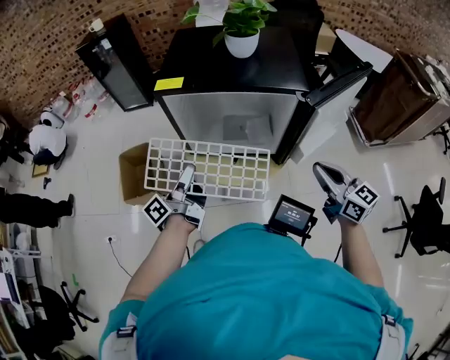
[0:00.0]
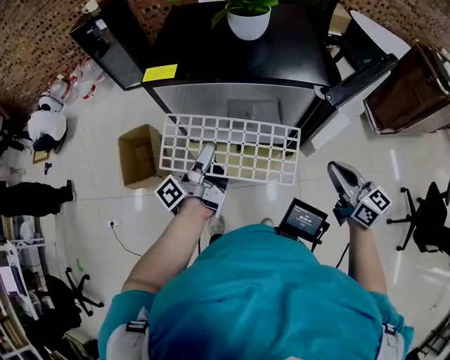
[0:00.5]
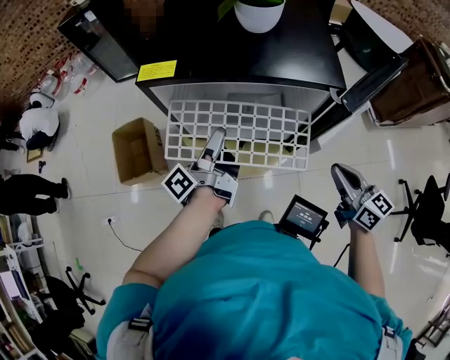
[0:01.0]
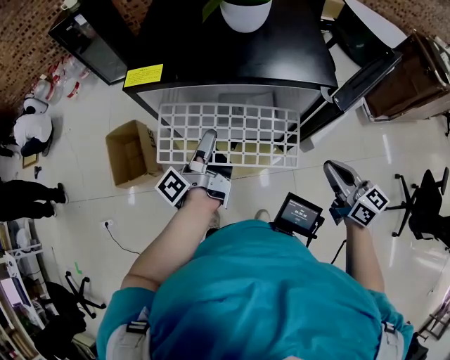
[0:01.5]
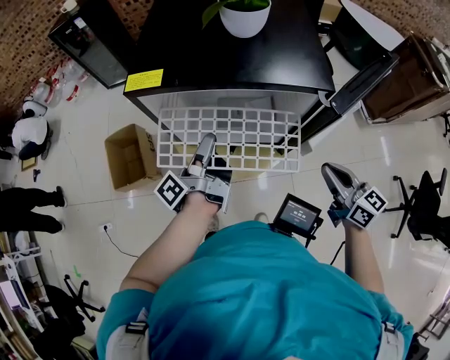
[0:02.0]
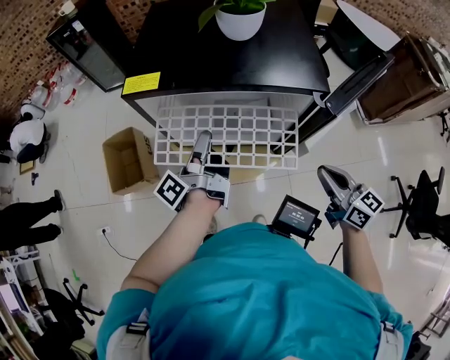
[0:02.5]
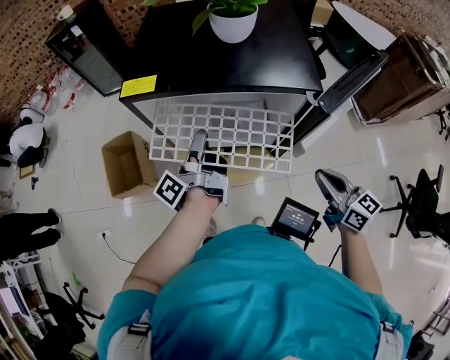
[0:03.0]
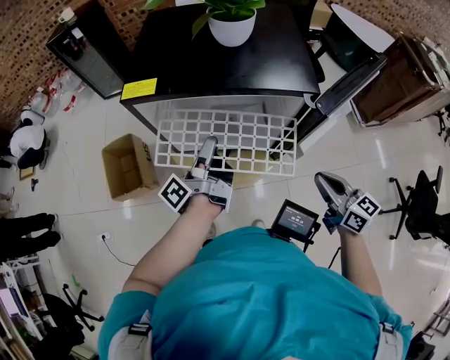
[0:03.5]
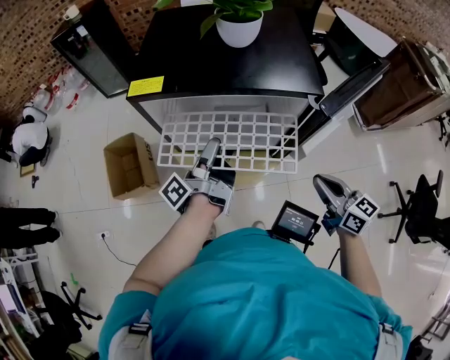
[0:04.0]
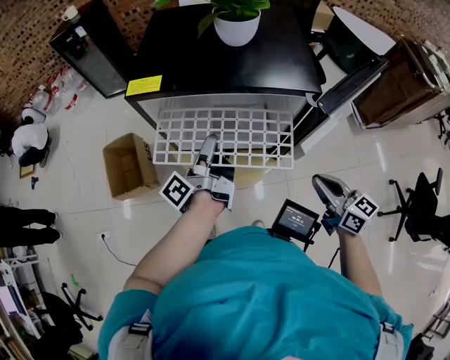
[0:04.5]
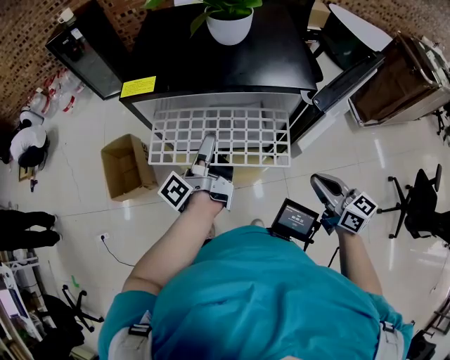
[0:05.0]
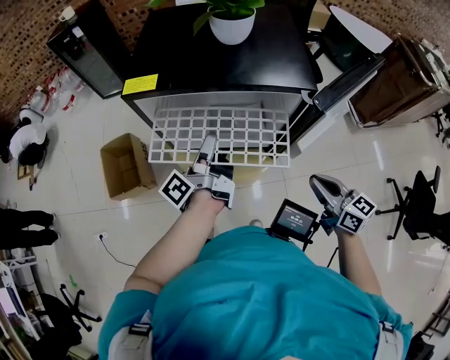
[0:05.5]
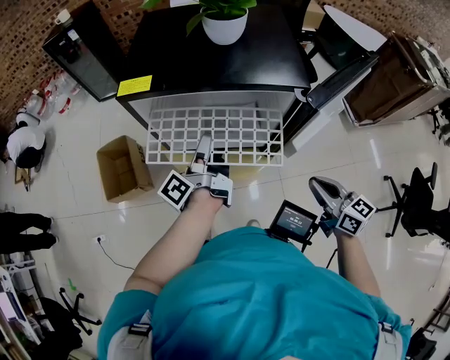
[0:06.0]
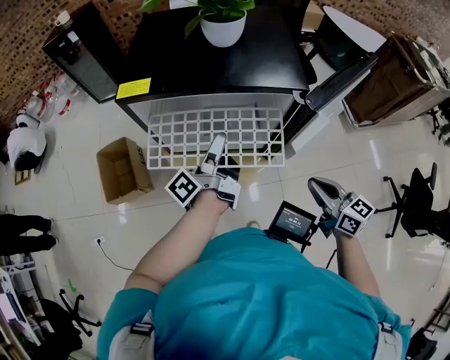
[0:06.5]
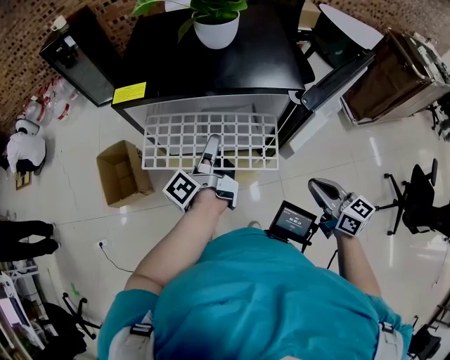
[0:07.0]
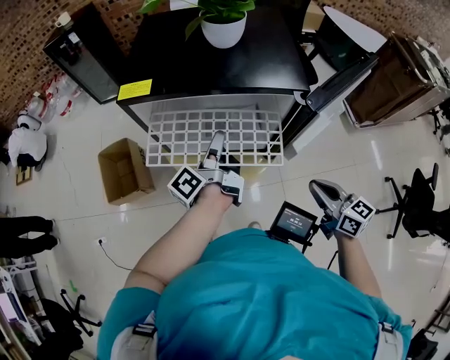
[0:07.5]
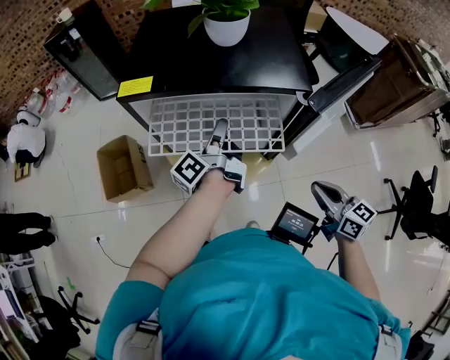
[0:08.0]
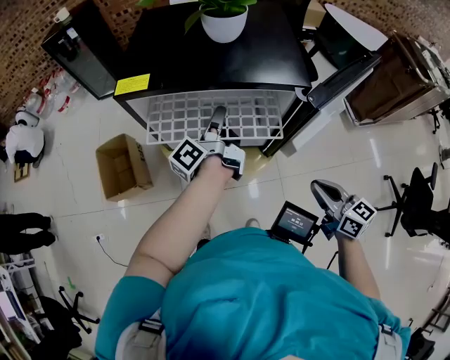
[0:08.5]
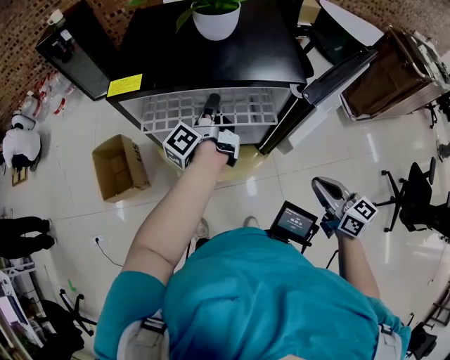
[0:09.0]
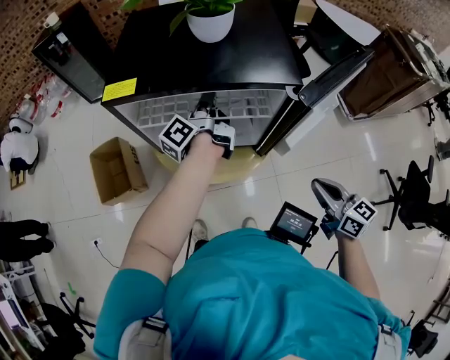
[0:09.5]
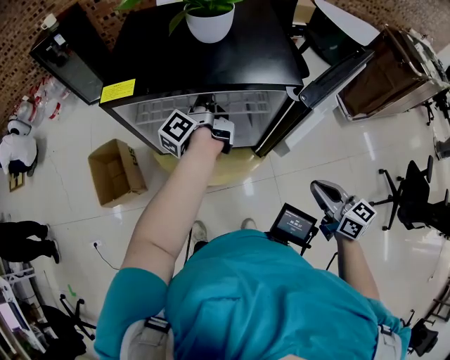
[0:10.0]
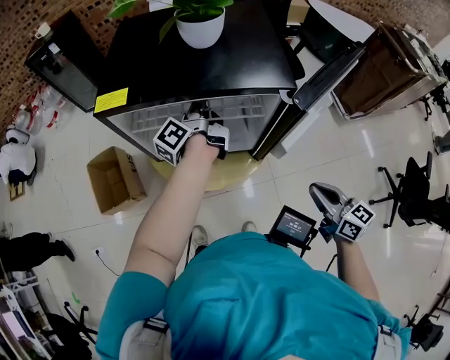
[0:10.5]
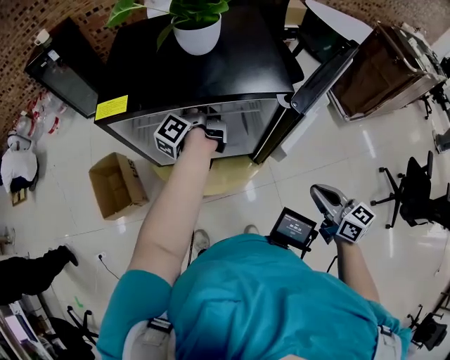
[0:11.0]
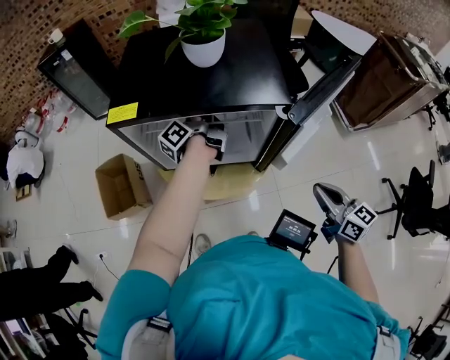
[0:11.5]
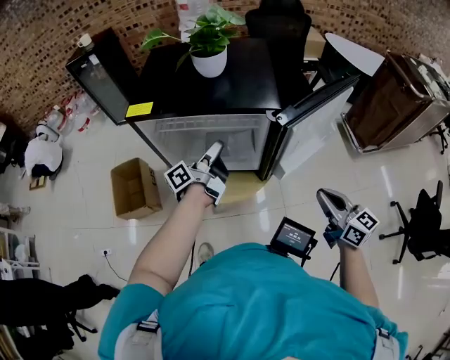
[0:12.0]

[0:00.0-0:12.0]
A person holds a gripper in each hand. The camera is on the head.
0:00.0 to 0:02.0: The left gripper is displaced forward and to the right by approximately 20 cm, and turns by approximately 20 degrees, while the right gripper shifts approximately 15 cm forward.
0:02.0 to 0:06.0: There are only small adjustments of the grippers.
0:06.0 to 0:08.0: The left gripper goes some 5 cm to the right.
0:08.0 to 0:10.0: The left gripper heads forward, covering about 10 cm.
0:10.0 to 0:12.0: The right gripper moves backward and to the right, approximately 15 cm; the left gripper goes roughly 20 cm backward.

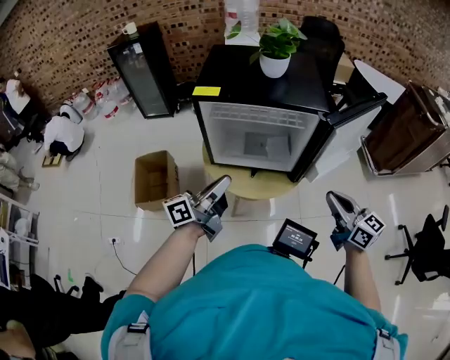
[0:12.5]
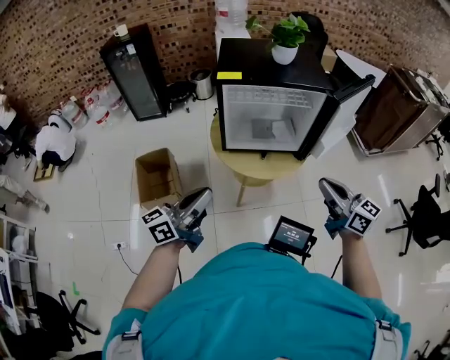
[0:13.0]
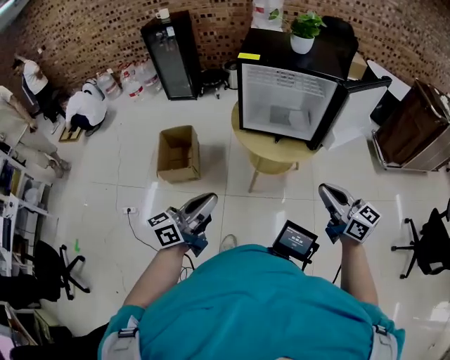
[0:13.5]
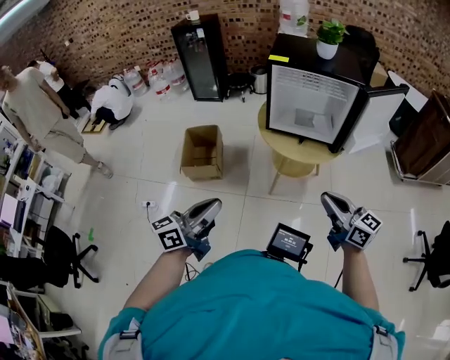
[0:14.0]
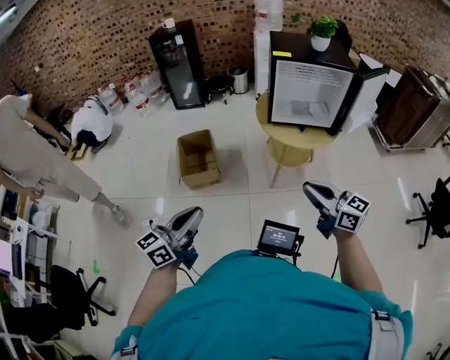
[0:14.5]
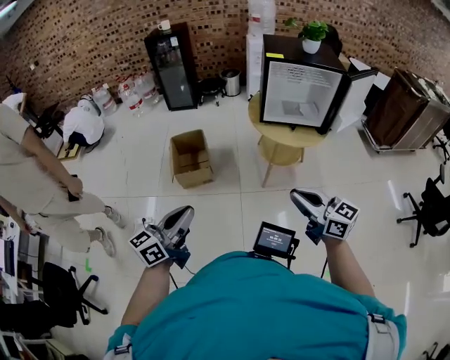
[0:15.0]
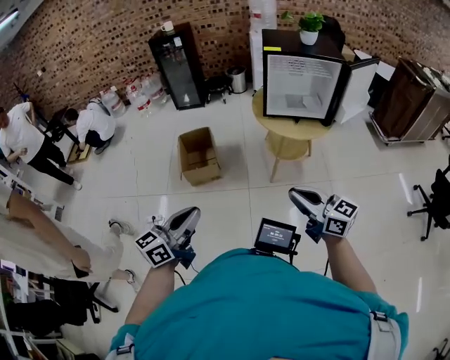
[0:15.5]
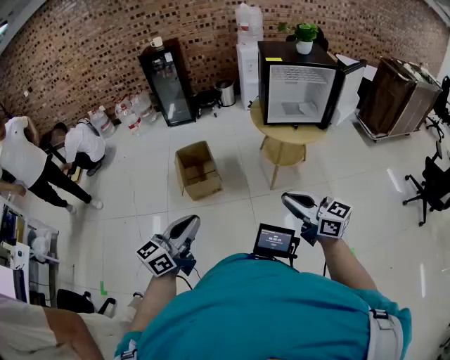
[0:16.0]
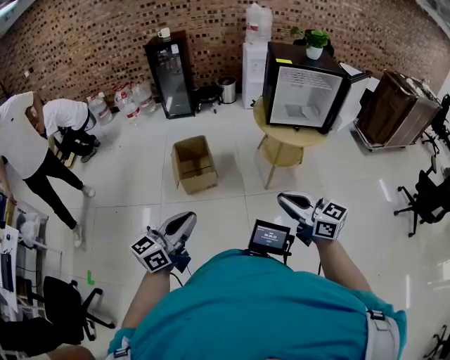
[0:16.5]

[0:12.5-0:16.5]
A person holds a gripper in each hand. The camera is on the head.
0:12.5 to 0:14.5: Both grippers are carried backward and to the left, some 60 cm. The left gripper rotates roughly 20 degrees.
0:14.5 to 0:16.5: The two grippers go roughly 20 cm to the left and backward.

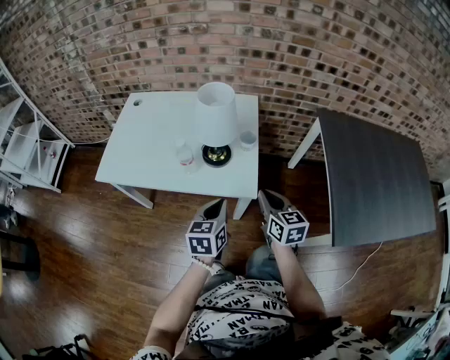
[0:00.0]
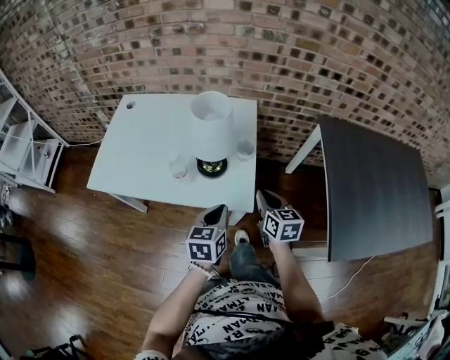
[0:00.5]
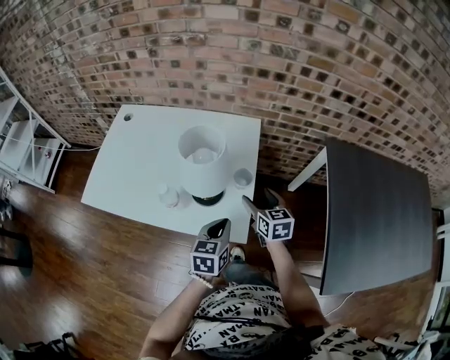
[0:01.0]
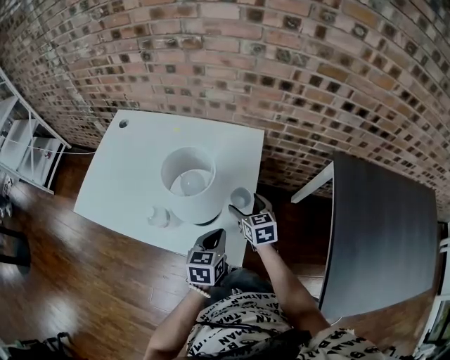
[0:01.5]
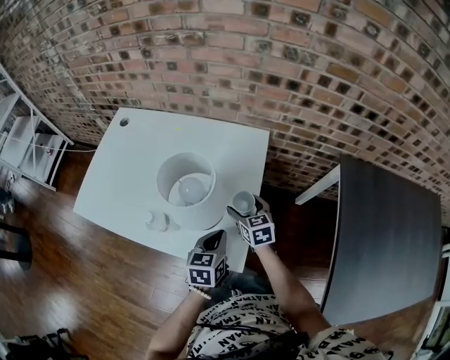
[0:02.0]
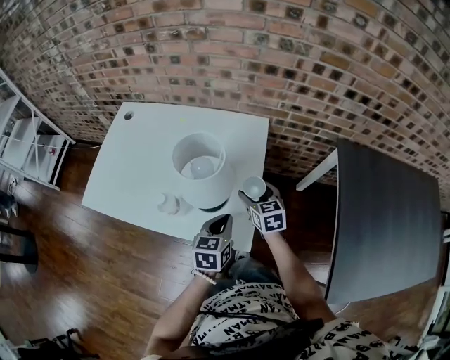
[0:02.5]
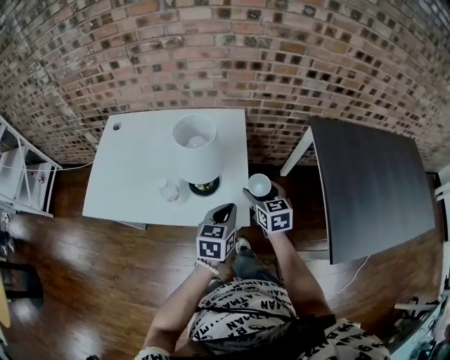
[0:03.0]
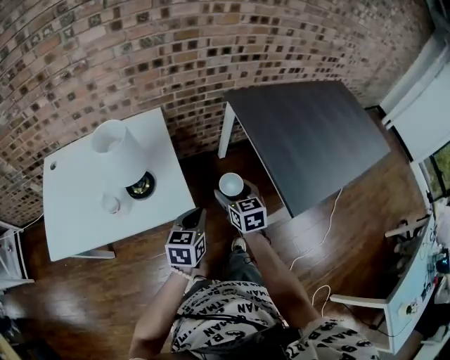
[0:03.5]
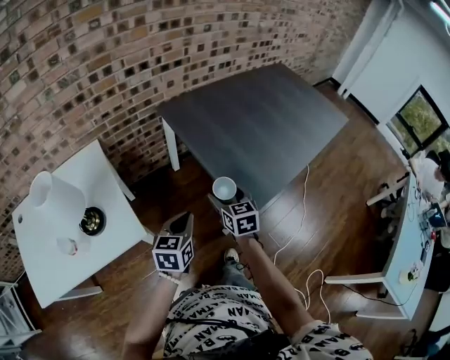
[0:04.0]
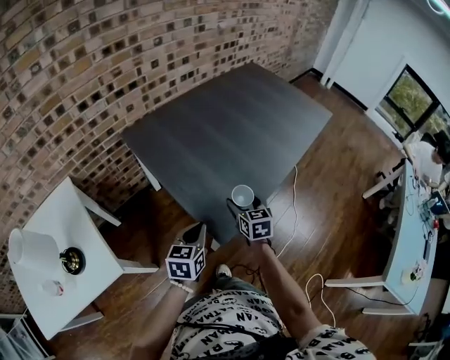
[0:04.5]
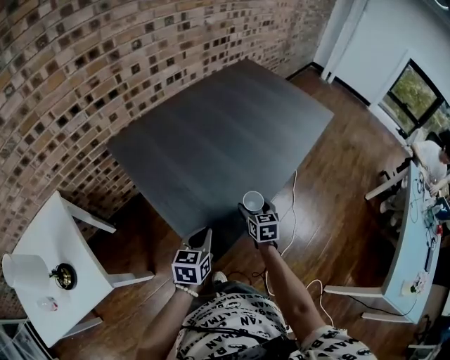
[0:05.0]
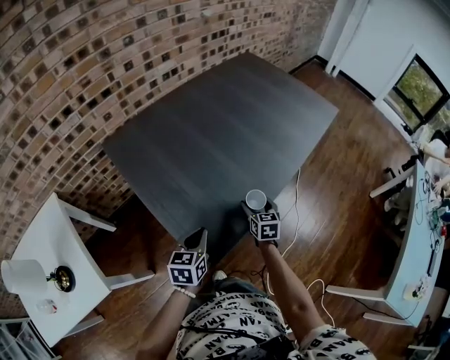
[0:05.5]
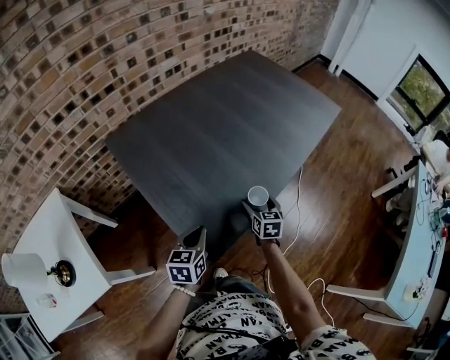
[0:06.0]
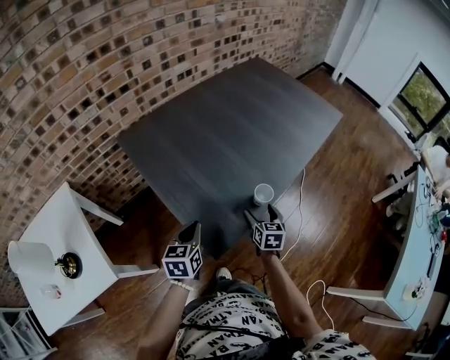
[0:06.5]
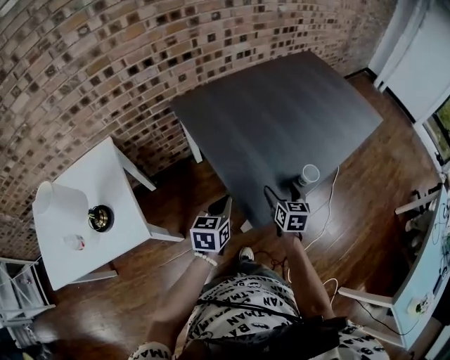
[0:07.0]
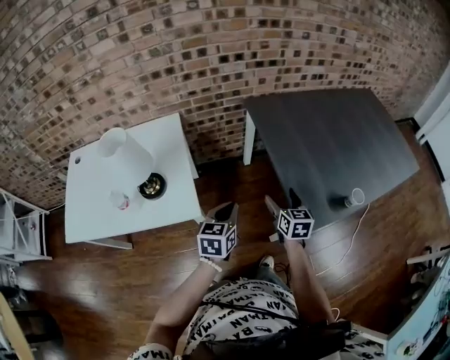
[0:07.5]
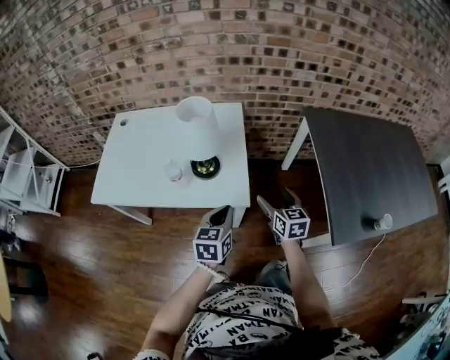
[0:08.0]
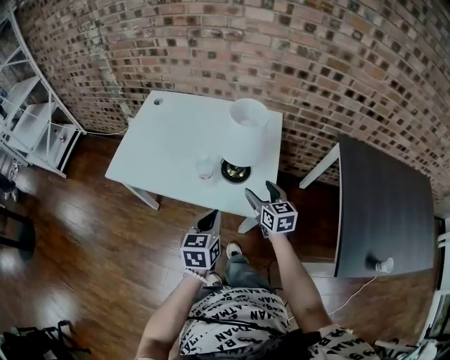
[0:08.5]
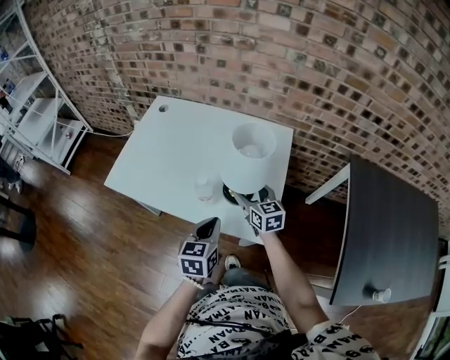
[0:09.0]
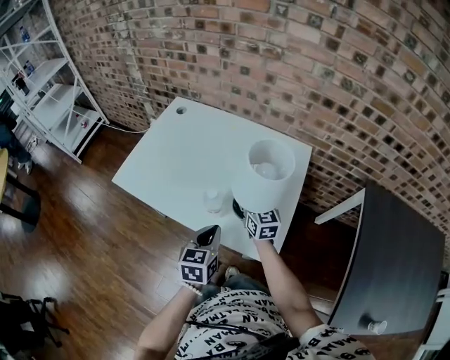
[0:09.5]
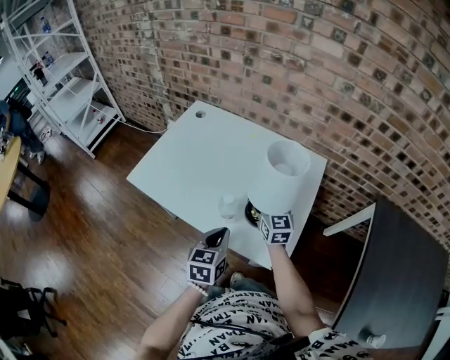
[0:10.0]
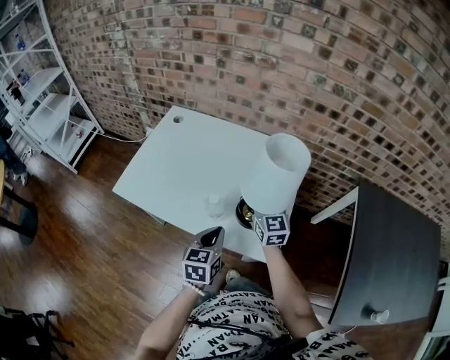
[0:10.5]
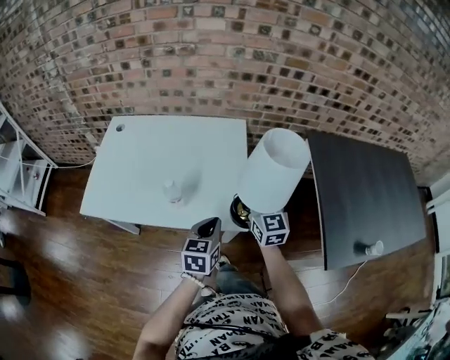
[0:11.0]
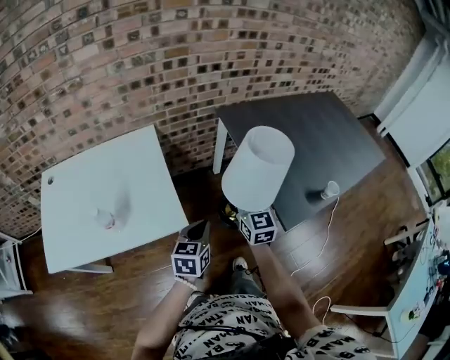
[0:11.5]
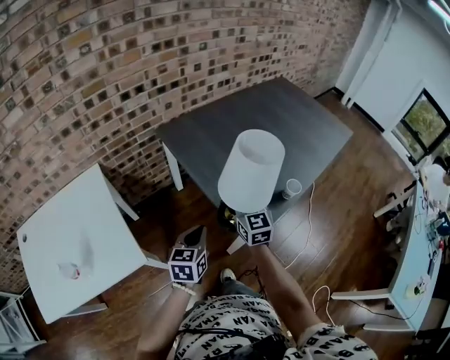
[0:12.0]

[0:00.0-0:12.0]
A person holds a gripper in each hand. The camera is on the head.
0:00.0 to 0:02.0: The two grippers go about 25 cm forward and downward. The right gripper changes its angle by approximately 20 degrees, and opens.
0:02.0 to 0:04.0: The right gripper ends up some 50 cm from where it was, and turns by approximately 50 degrees. The left gripper ends up some 35 cm from where it was, and changes its angle by some 50 degrees.
0:04.0 to 0:06.0: The left gripper heads to the right and forward, covering about 30 cm. The right gripper heads to the right, forward and downward, covering some 40 cm, and rotates about 20 degrees.
0:06.0 to 0:08.0: The pair of grippers is taken roughly 60 cm. The left gripper rotates approximately 40 degrees. Meanwhile the right gripper changes its angle by roughly 50 degrees.
0:08.0 to 0:10.0: The right gripper is displaced forward and to the left by approximately 35 cm, swivels about 30 degrees, and closes up, while the left gripper is displaced to the left and forward by approximately 20 cm, and turns by about 30 degrees.
0:10.0 to 0:12.0: Both grippers are carried approximately 60 cm. The left gripper changes its angle by about 60 degrees, while the right gripper changes its angle by approximately 60 degrees.
